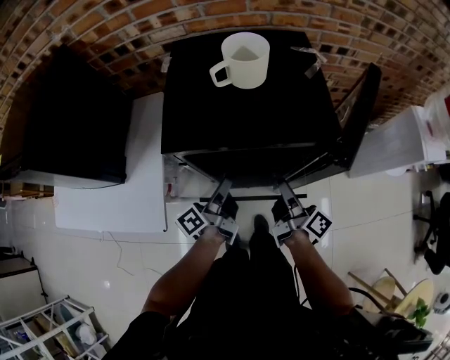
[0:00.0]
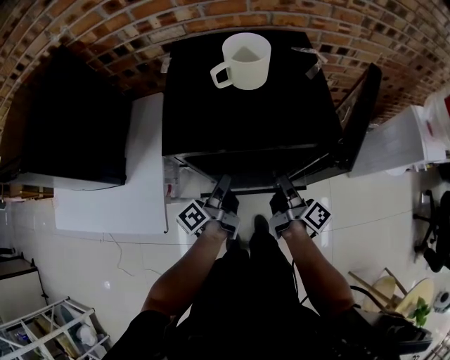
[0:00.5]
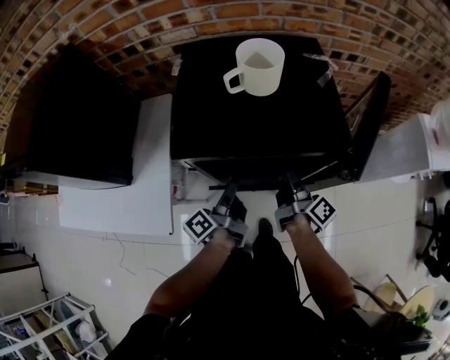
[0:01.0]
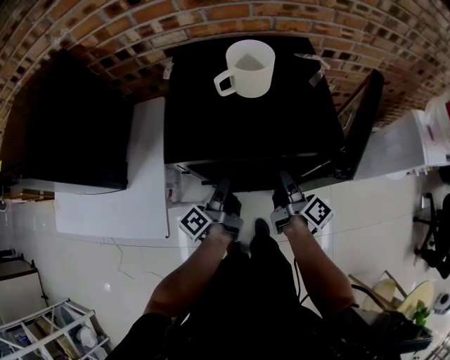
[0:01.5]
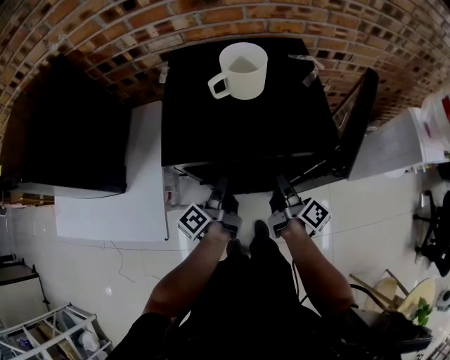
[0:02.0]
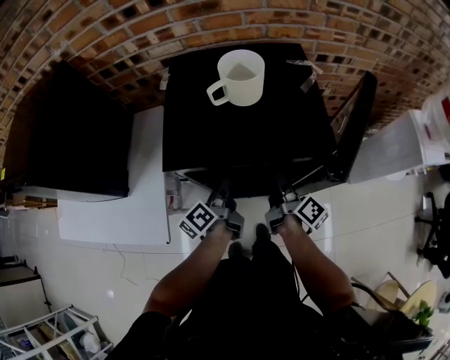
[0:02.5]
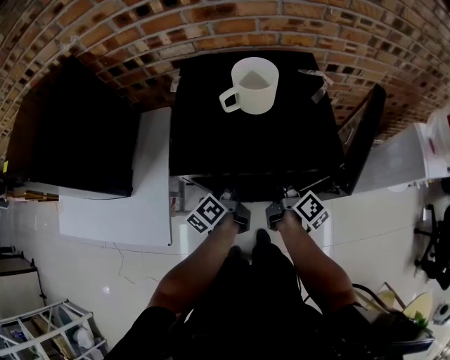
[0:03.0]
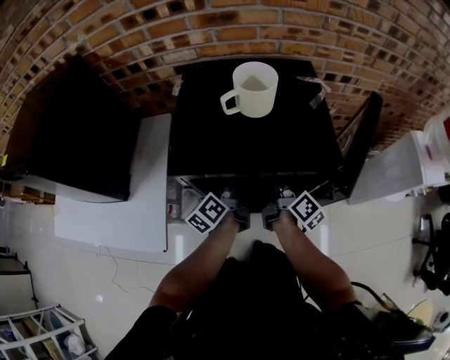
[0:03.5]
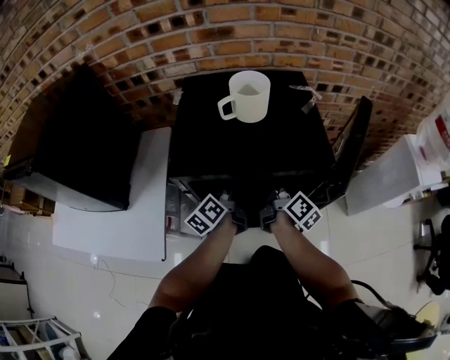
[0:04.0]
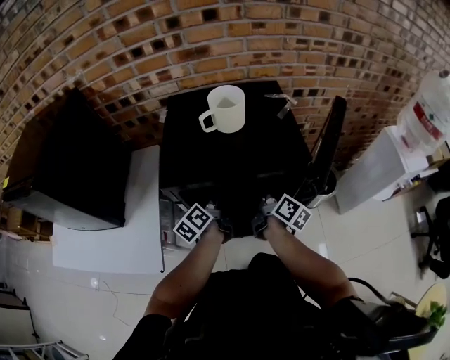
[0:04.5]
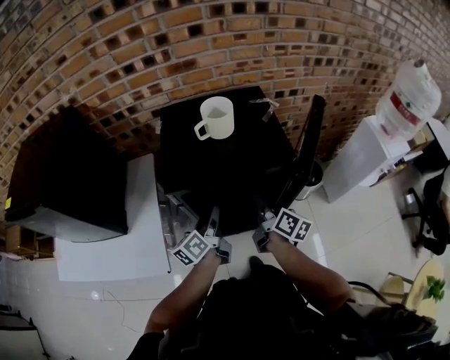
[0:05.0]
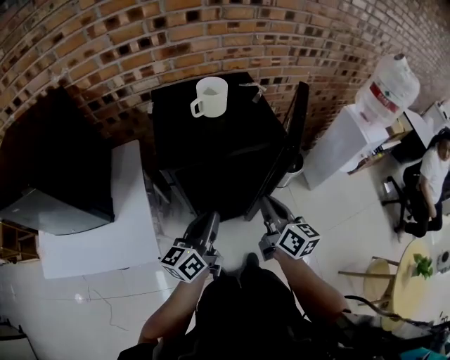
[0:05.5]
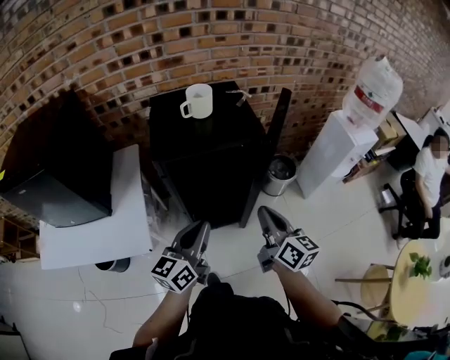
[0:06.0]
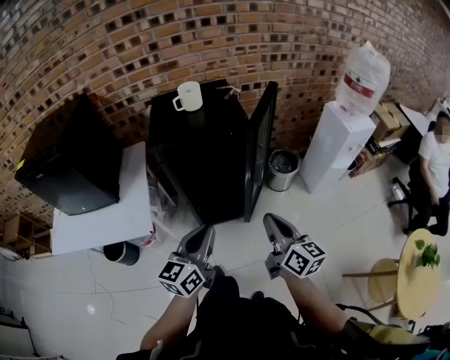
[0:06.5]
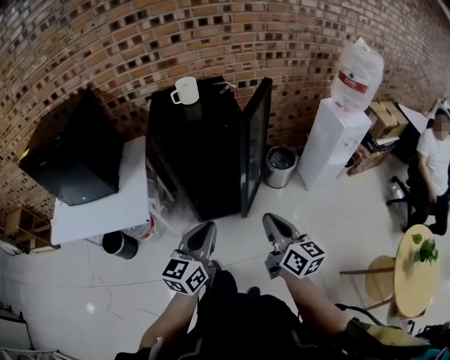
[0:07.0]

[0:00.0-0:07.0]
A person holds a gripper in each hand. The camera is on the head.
0:02.0 to 0:03.5: Both grippers move forward, some 5 cm. The left gripper rotates approximately 20 degrees.
0:03.5 to 0:05.0: Both grippers travel together backward and upward, approximately 10 cm.
0:05.0 to 0:07.0: Both grippers travel together backward and to the right, about 40 cm. The left gripper twists about 40 degrees clockwise, seen from behind, and closes; the right gripper rotates approximately 30 degrees.

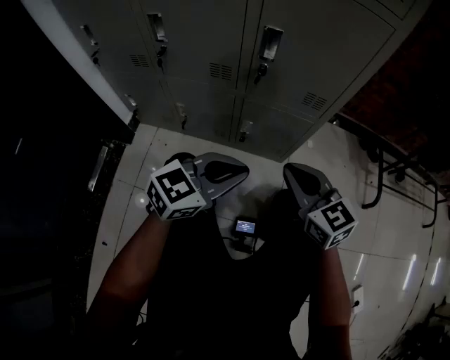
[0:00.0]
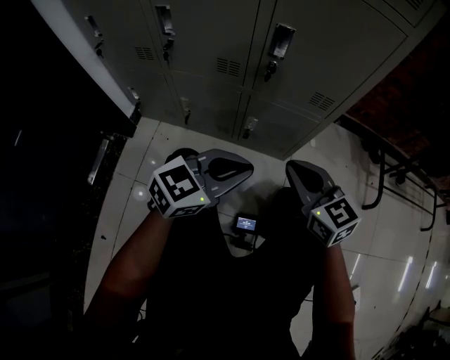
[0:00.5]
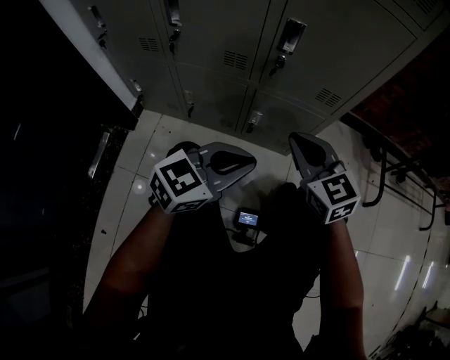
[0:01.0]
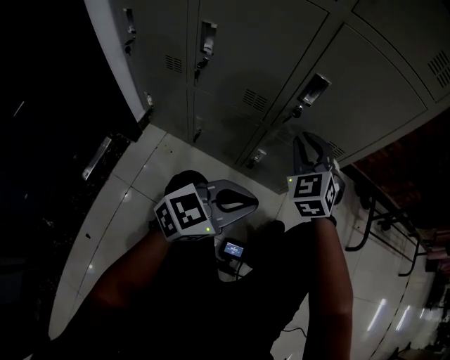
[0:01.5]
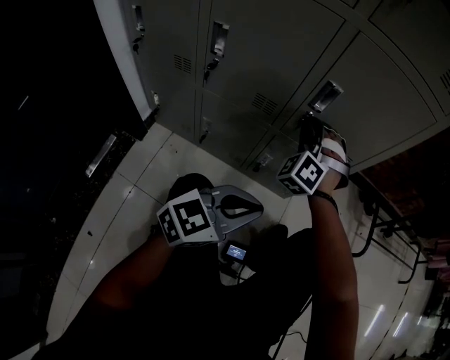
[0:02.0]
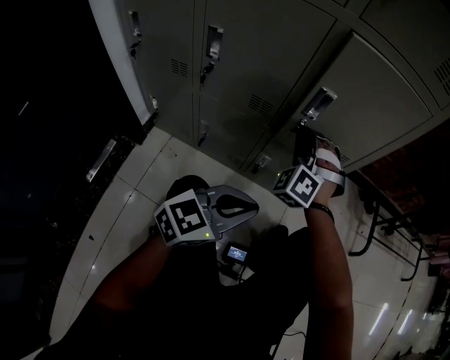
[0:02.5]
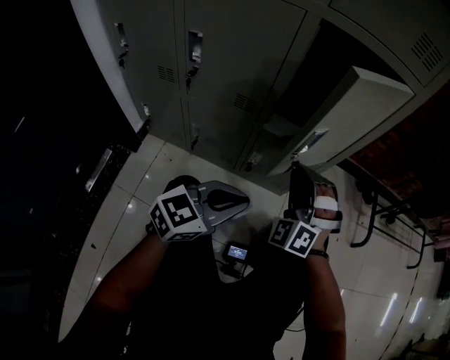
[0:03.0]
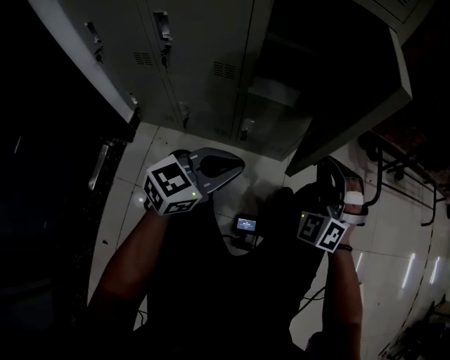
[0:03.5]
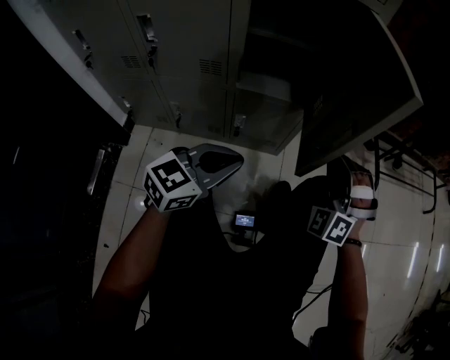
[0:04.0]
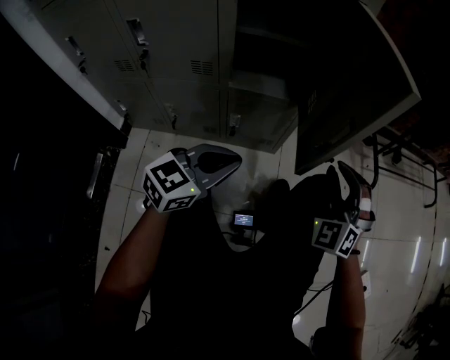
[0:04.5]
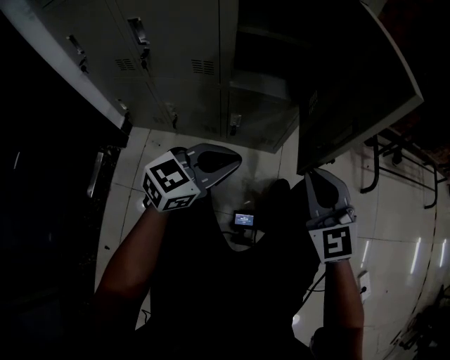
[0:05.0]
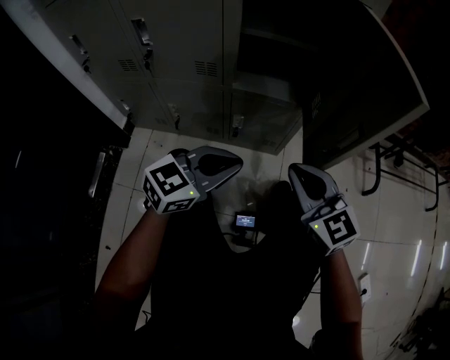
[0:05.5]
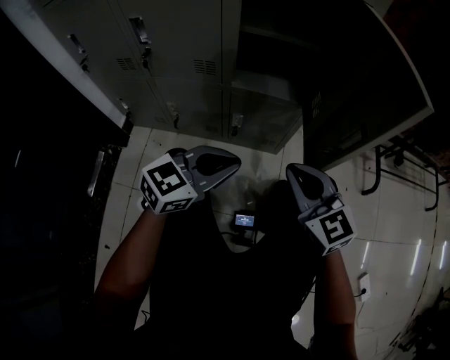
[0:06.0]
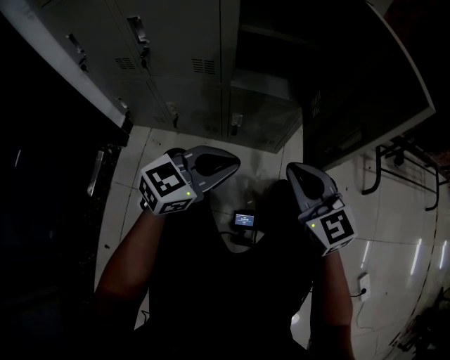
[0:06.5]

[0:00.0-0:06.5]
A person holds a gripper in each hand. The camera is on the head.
0:00.0 to 0:02.0: The right gripper heads forward and to the left, covering approximately 25 cm, and rolls counterclockwise, seen from behind, by approximately 70 degrees.
0:02.0 to 0:04.5: The right gripper heads to the right, covering roughly 30 cm.
0:04.5 to 0:06.5: The right gripper shifts roughly 10 cm to the left, rotates roughly 60 degrees, and closes.

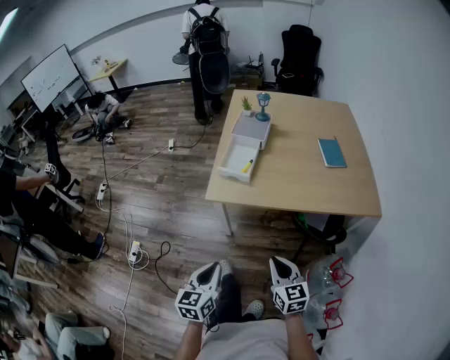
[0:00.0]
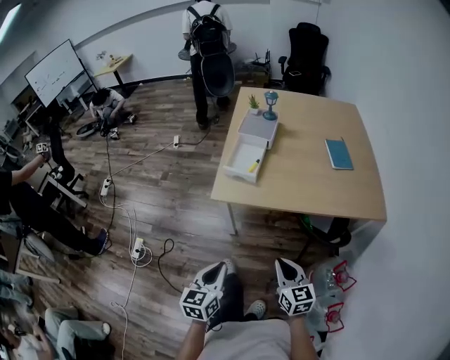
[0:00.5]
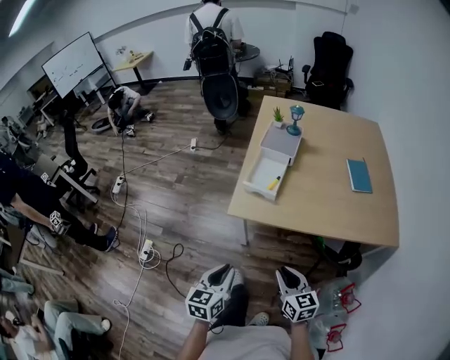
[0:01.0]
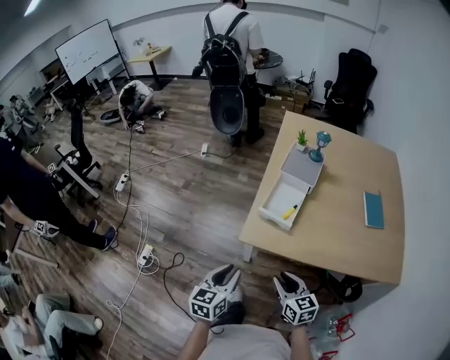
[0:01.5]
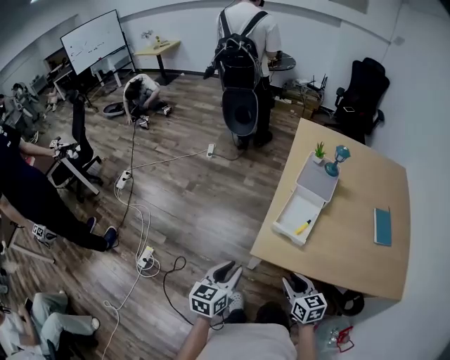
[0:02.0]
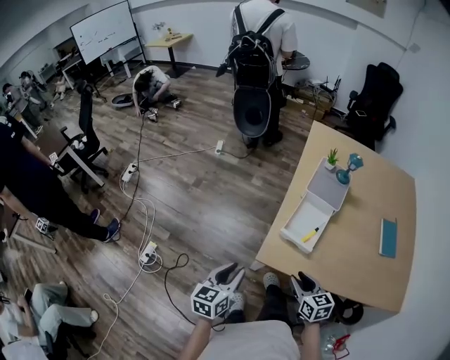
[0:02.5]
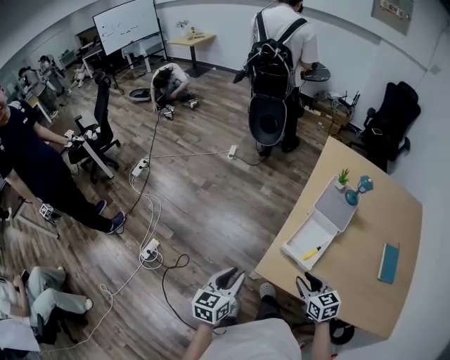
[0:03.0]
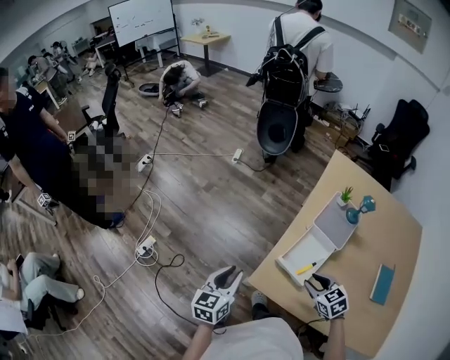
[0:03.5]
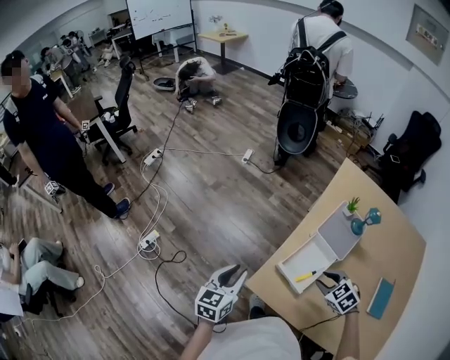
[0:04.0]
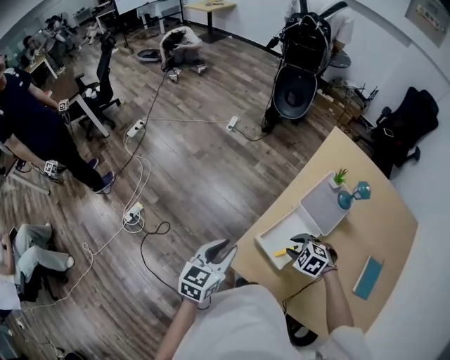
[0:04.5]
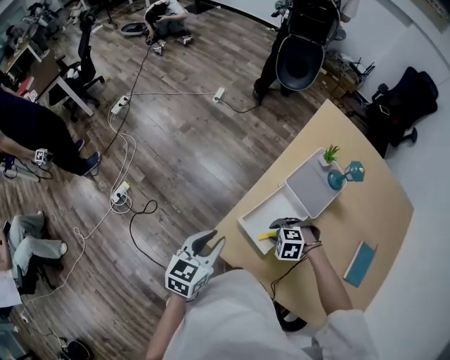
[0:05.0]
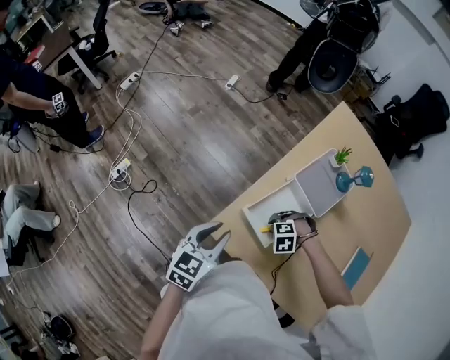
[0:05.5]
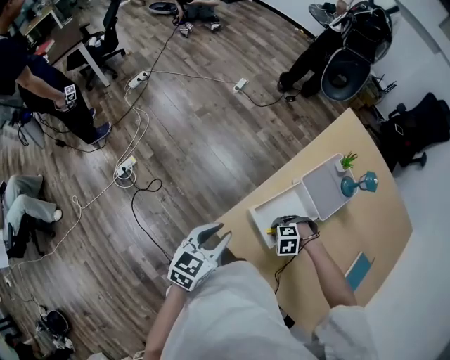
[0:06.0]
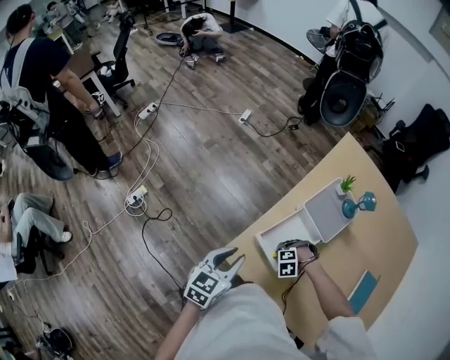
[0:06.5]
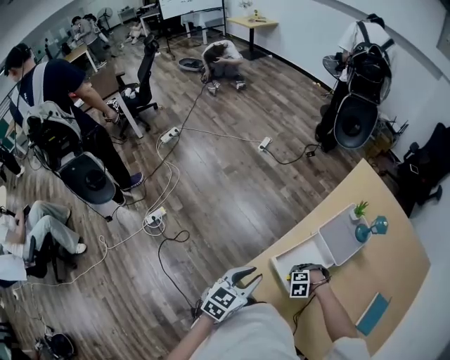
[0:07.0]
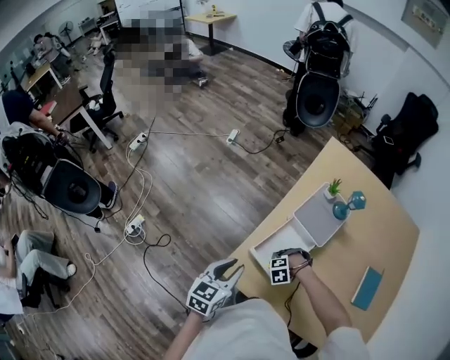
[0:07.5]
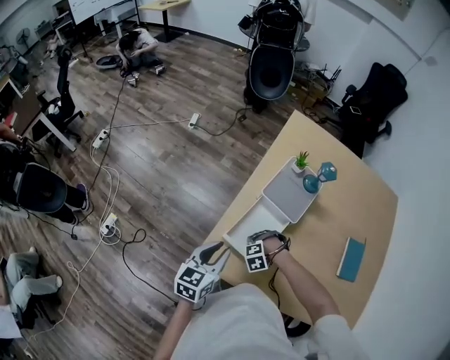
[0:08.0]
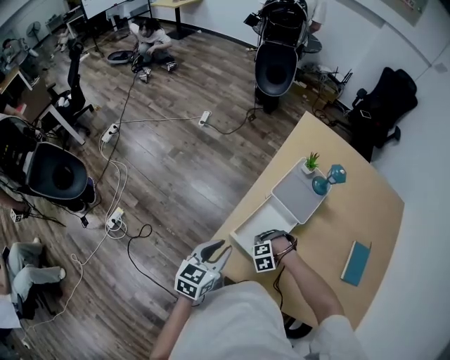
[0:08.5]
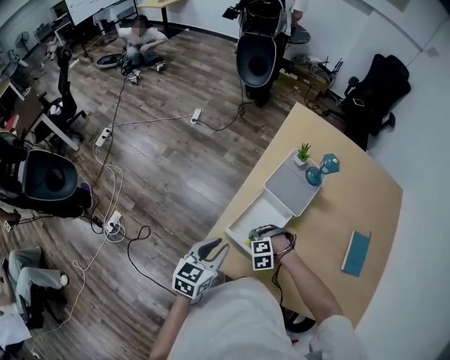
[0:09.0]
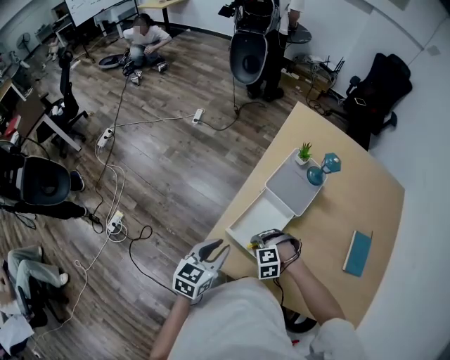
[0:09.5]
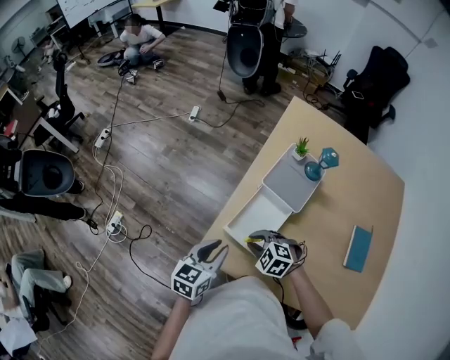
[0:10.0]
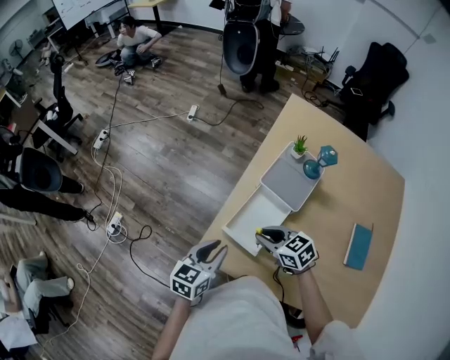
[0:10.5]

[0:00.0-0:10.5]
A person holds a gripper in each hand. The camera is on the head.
0:00.0 to 0:02.0: The grippers both shift forward and to the left by some 30 cm. The right gripper opens; the left gripper opens.
0:02.0 to 0:04.0: The right gripper goes about 25 cm forward and to the right, and tilts its fingers roughly 30 degrees downward. The left gripper travels forward by some 15 cm.
0:04.0 to 0:06.5: The left gripper ends up roughly 10 cm from where it was. Meanwhile the right gripper travels downward by approximately 20 cm, and twists some 60 degrees counterclockwise, seen from behind.
0:06.5 to 0:08.5: The left gripper changes place by roughly 5 cm.
0:08.5 to 0:10.5: The right gripper moves upward, about 15 cm, and angles its fingers upward, by approximately 50 degrees.

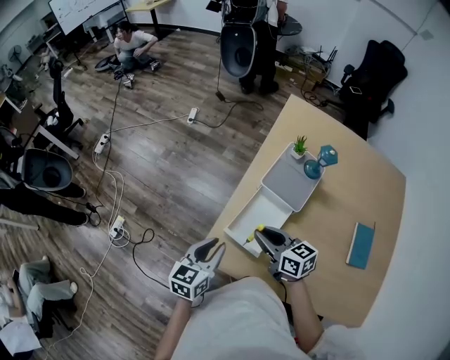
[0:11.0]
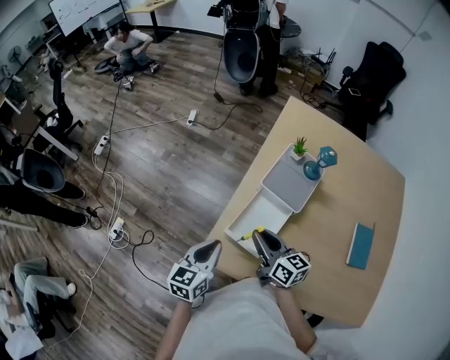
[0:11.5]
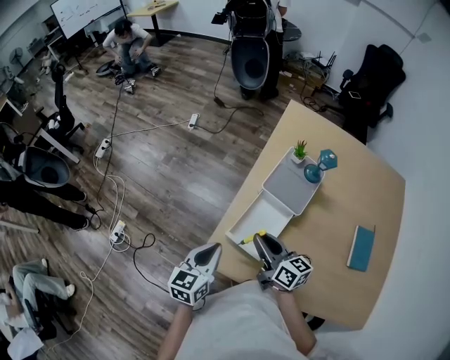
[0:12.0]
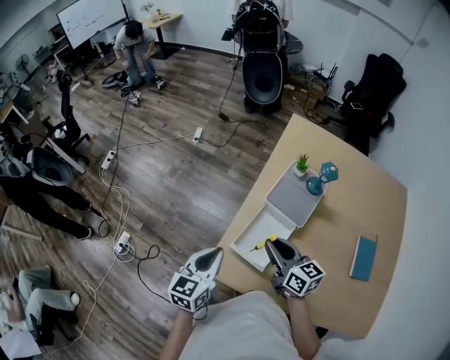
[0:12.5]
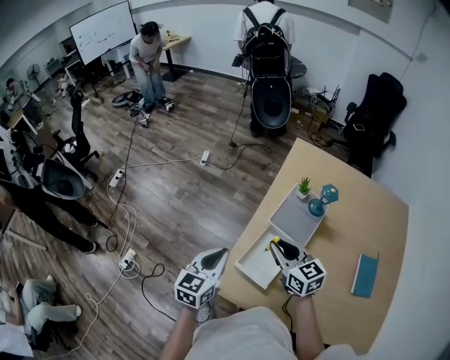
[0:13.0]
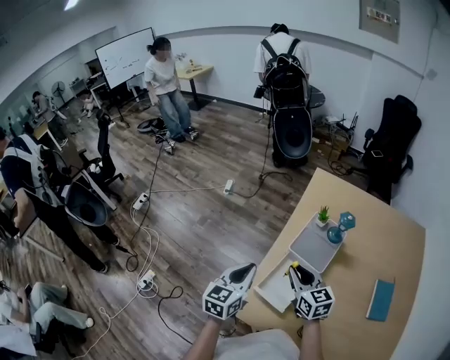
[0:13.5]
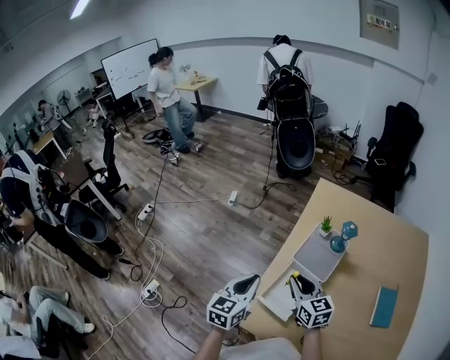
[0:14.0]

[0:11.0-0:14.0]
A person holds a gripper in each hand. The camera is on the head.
0:11.0 to 0:12.5: The two grippers go about 5 cm upward.
0:12.5 to 0:14.0: The left gripper shifts roughly 10 cm upward and forward.
